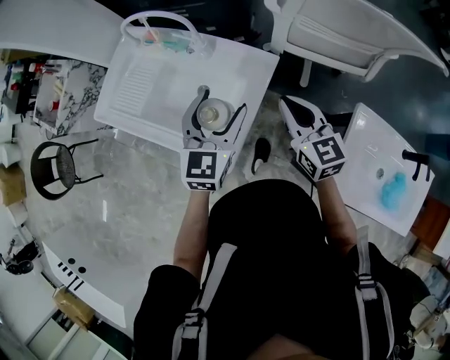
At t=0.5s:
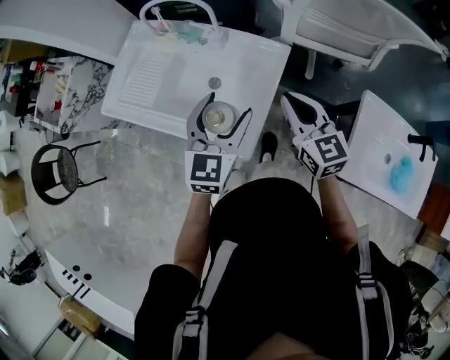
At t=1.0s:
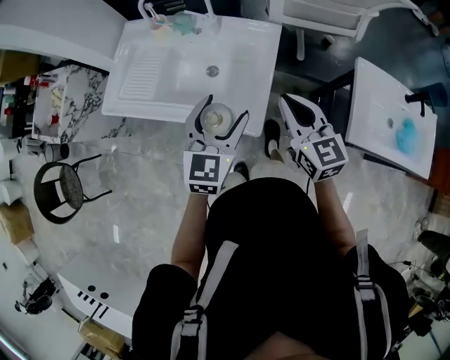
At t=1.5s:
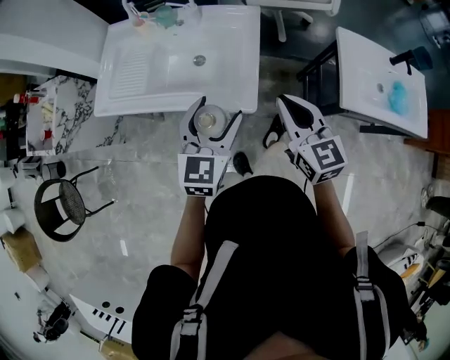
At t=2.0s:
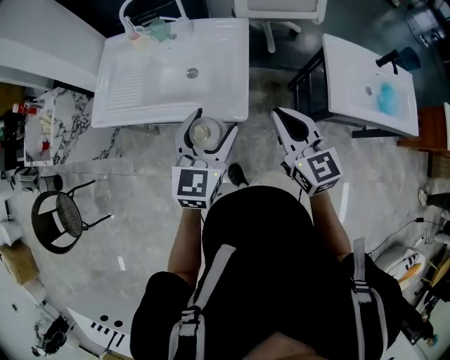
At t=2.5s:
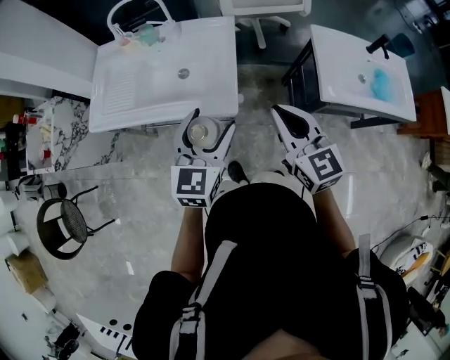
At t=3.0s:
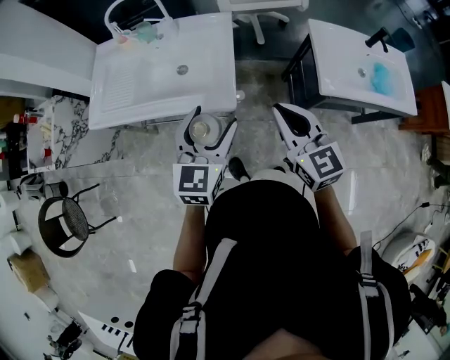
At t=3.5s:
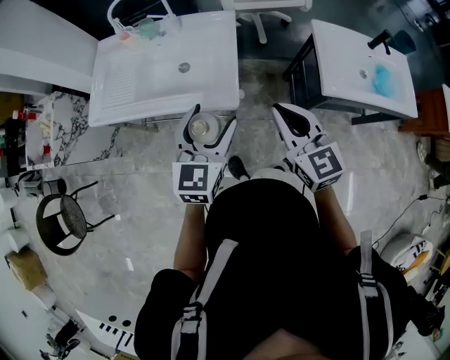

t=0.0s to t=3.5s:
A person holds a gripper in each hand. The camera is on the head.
t=0.0s to t=2.0s: Both grippers move backward, about 25 cm. The left gripper rotates about 20 degrees. Meanwhile the right gripper turns by about 20 degrees.
t=2.0s to t=3.5s: The grippers make only small movements.

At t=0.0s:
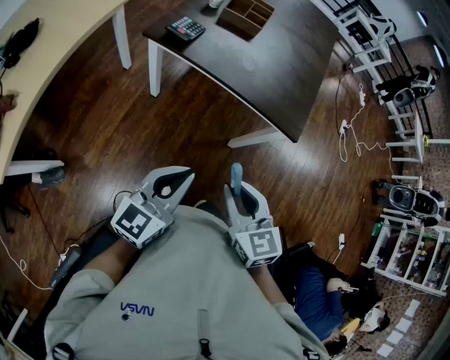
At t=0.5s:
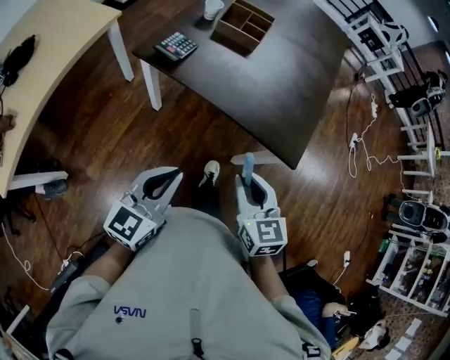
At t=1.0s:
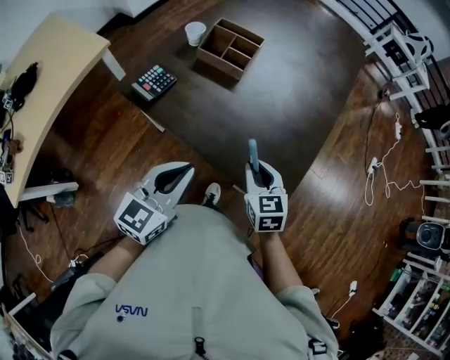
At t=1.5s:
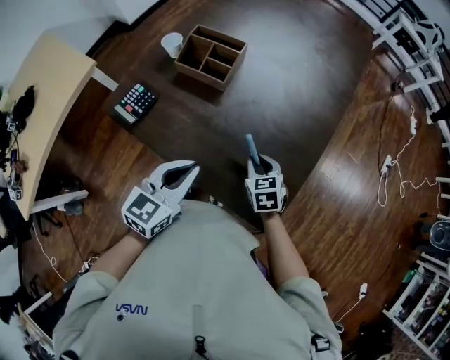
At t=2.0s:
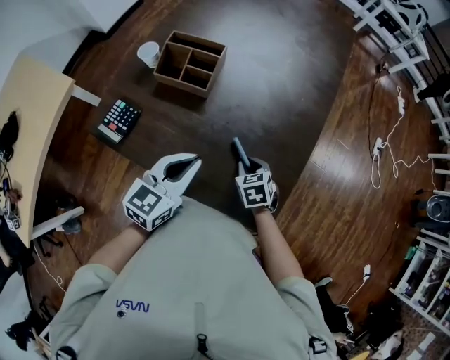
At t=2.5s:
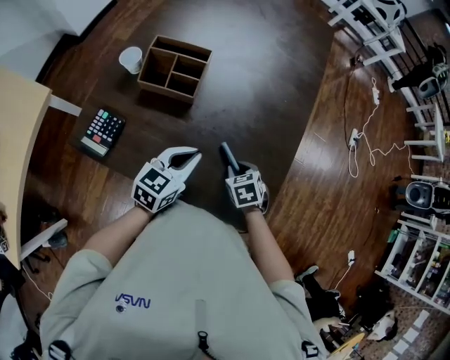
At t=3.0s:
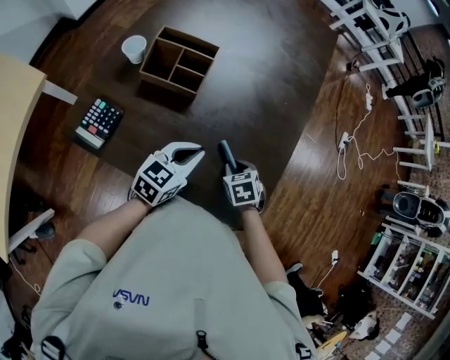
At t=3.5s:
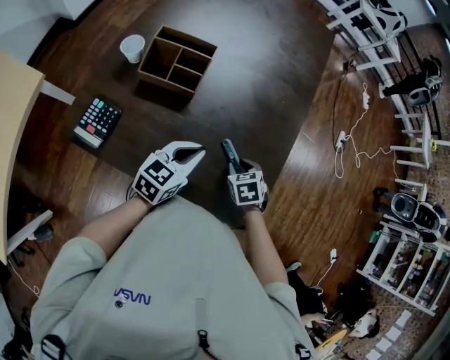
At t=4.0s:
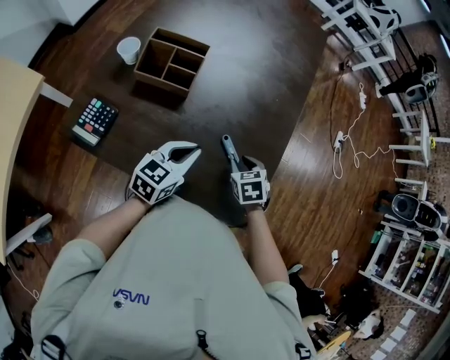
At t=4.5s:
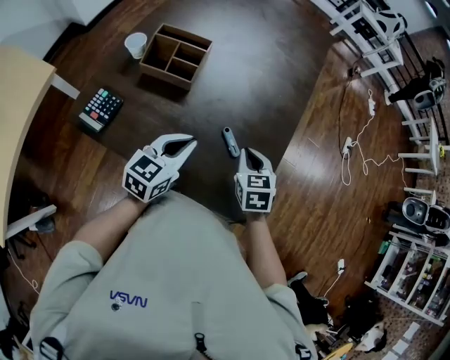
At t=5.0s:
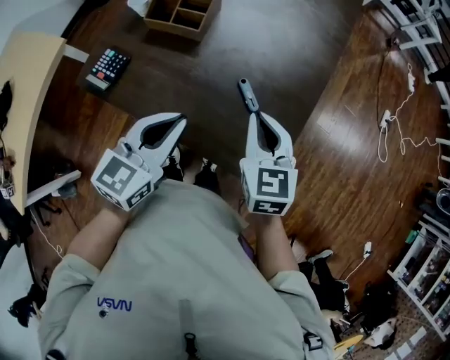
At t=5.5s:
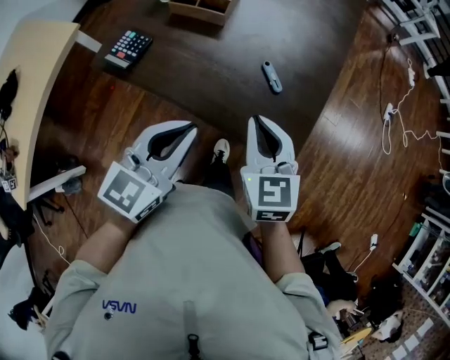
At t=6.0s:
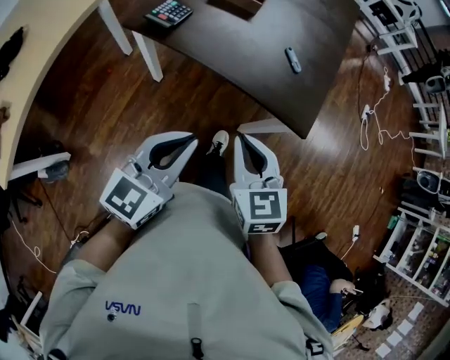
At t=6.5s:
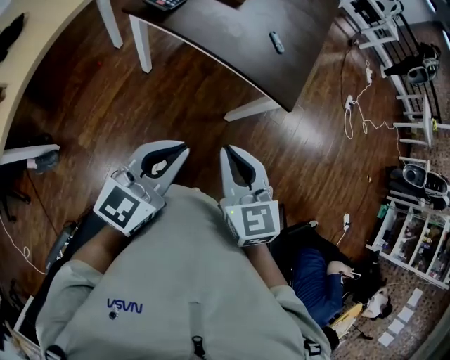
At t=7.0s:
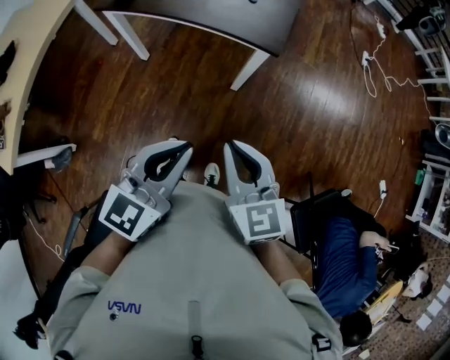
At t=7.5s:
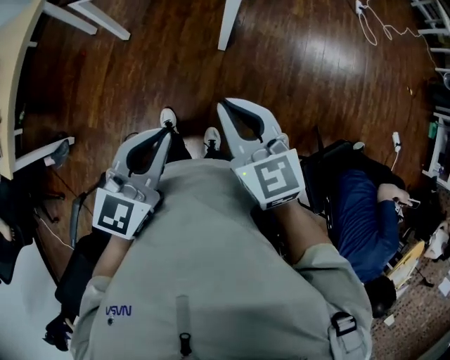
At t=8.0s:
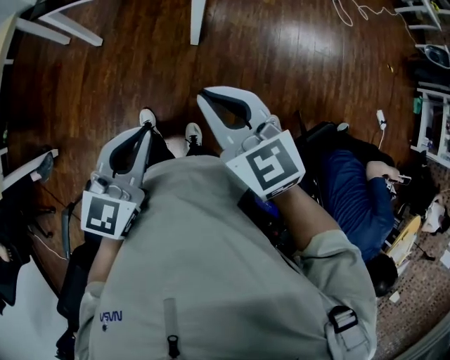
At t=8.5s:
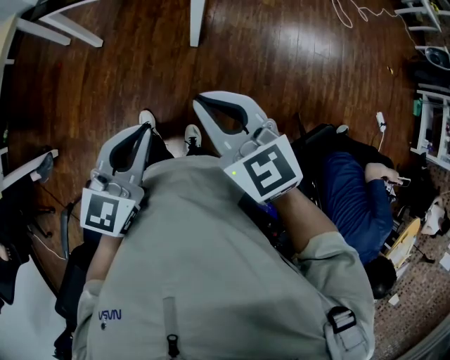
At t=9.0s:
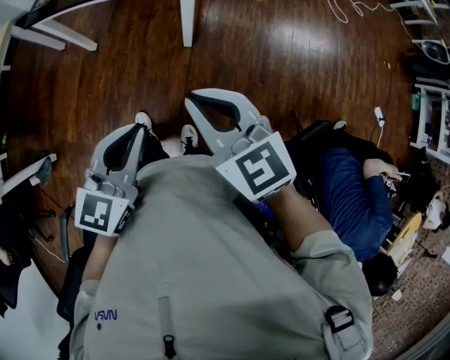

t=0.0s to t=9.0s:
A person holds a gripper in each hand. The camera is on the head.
t=0.0s to t=2.0s: The left gripper goes roughly 30 cm forward. Meanwhile the right gripper moves forward and downward, about 40 cm, and tips its fingers downward by some 30 degrees.
t=2.0s to t=4.5s: The right gripper is displaced upward by approximately 10 cm.
t=4.5s to t=7.0s: Both grippers move backward, some 40 cm. The right gripper turns by approximately 30 degrees.
t=7.0s to t=9.0s: The right gripper shifts by roughly 5 cm; the left gripper moves roughly 5 cm.

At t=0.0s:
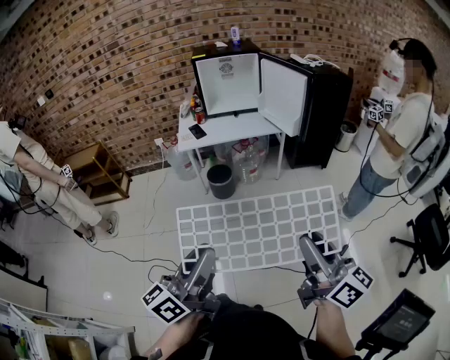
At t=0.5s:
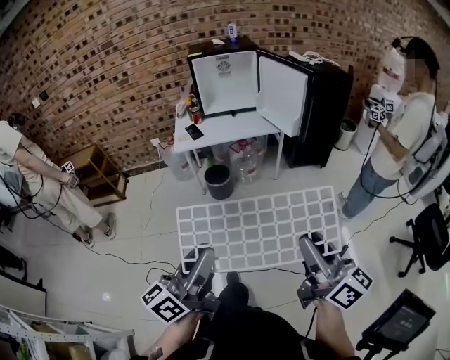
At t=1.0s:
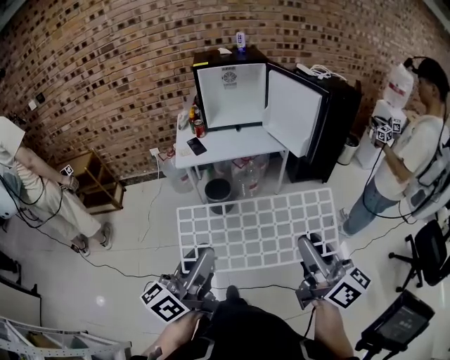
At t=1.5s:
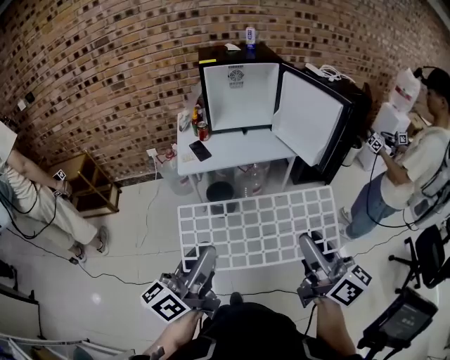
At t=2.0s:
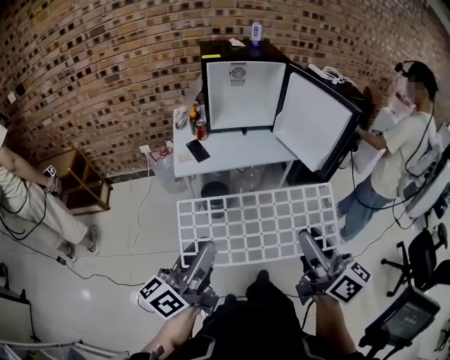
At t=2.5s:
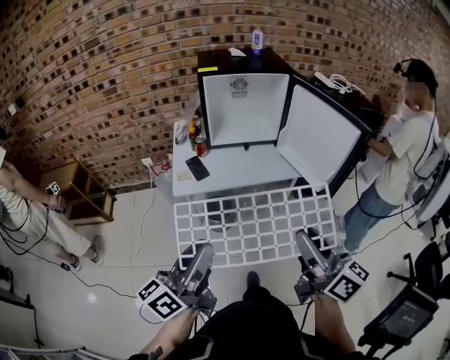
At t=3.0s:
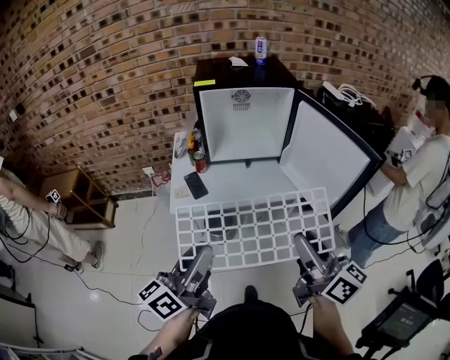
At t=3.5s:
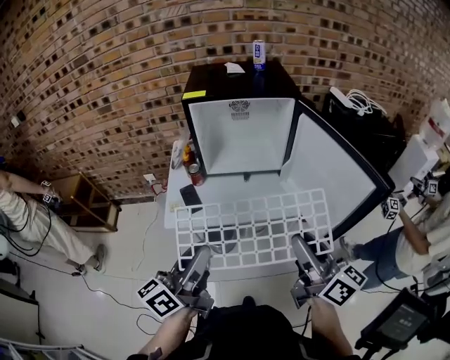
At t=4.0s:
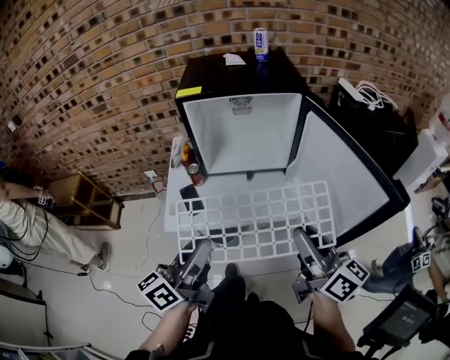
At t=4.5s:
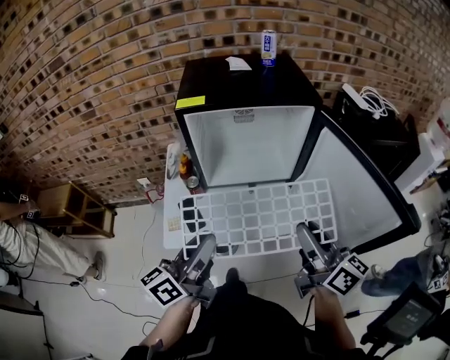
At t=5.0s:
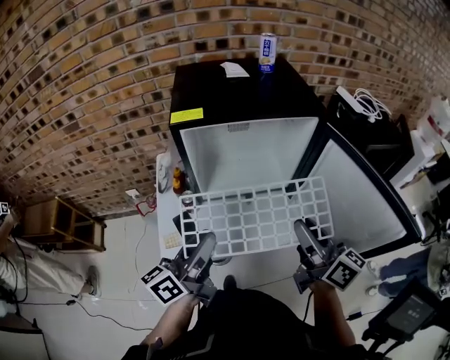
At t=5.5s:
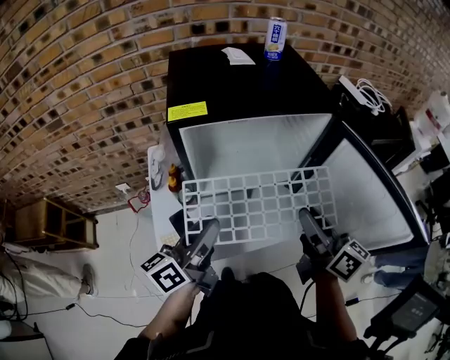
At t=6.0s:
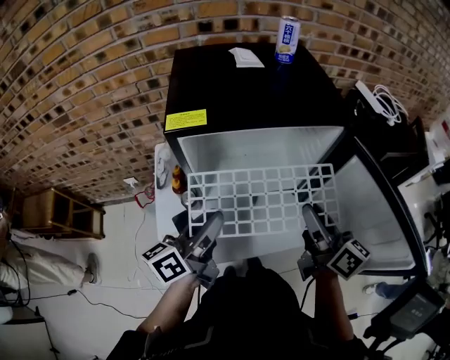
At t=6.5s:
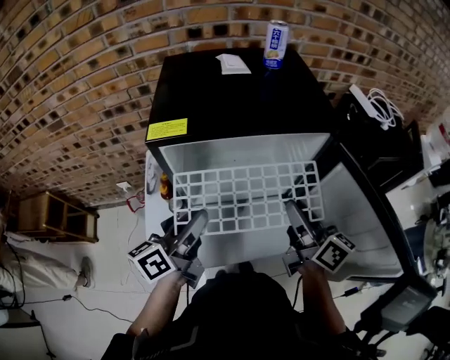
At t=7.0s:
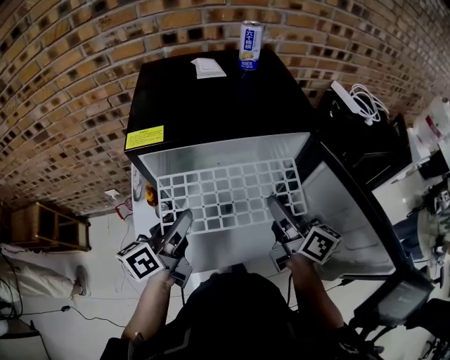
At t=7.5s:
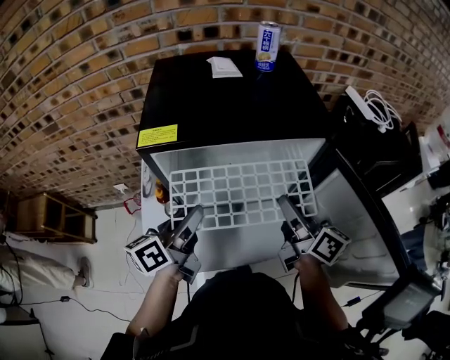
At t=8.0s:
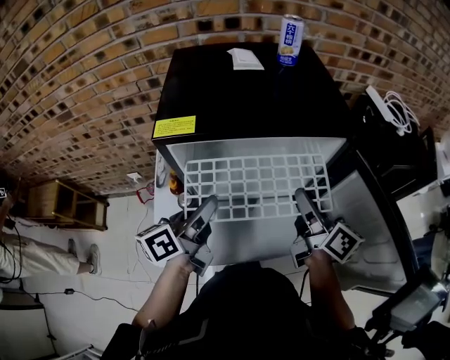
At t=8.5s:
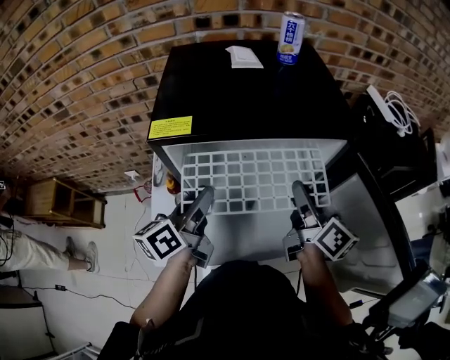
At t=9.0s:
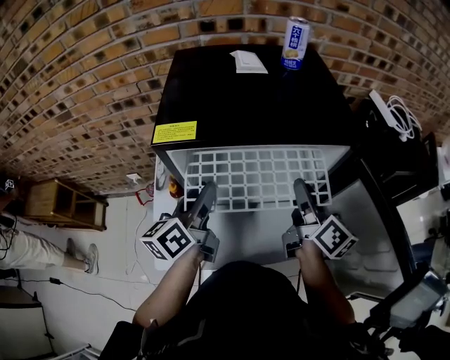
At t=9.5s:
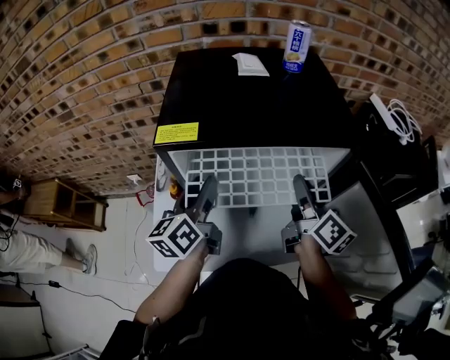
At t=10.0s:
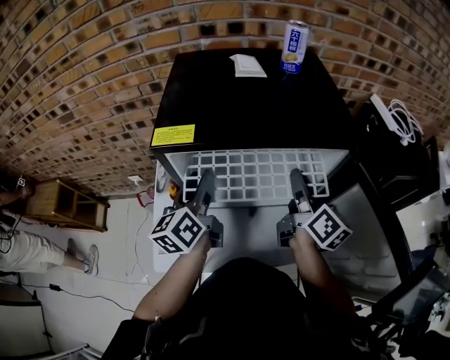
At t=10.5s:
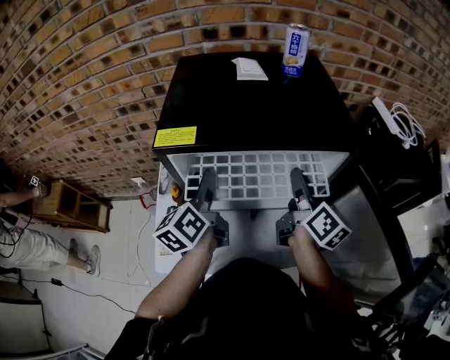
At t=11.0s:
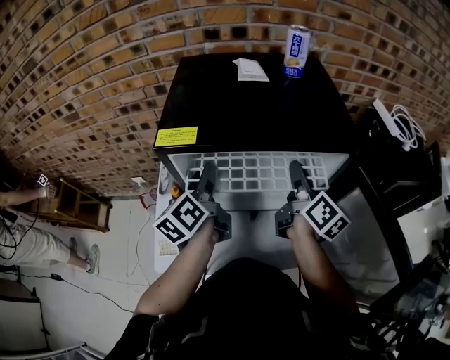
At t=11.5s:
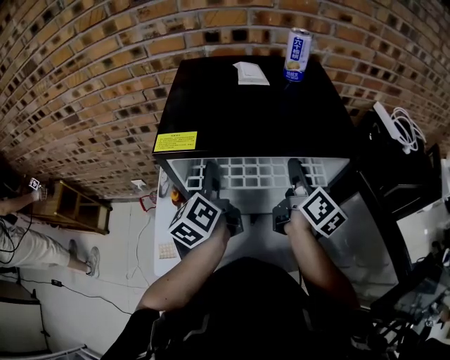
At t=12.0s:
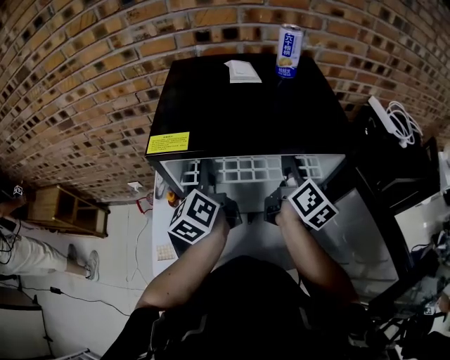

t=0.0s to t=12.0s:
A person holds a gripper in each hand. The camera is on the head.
t=0.0s to t=2.0s: The two grippers go roughly 30 cm forward and to the left.
t=2.0s to t=4.0s: The grippers both shift forward by about 35 cm.
t=4.0s to t=6.0s: Both grippers travel together forward, about 25 cm.
t=6.0s to t=8.0s: Both grippers travel together forward, about 5 cm.
t=8.0s to t=10.0s: The two grippers go approximately 10 cm forward. The left gripper swivels approximately 30 degrees, and opens up.
t=10.0s to t=12.0s: The right gripper is displaced forward by some 5 cm.

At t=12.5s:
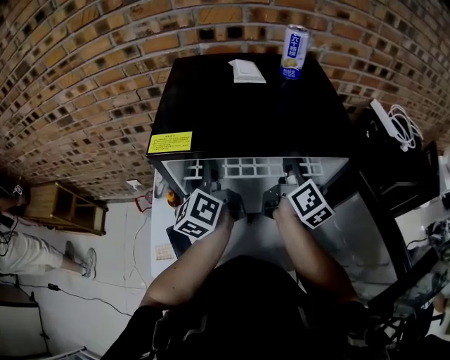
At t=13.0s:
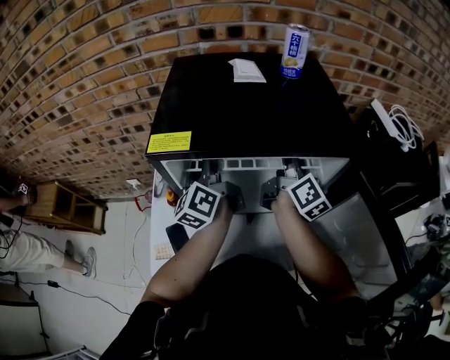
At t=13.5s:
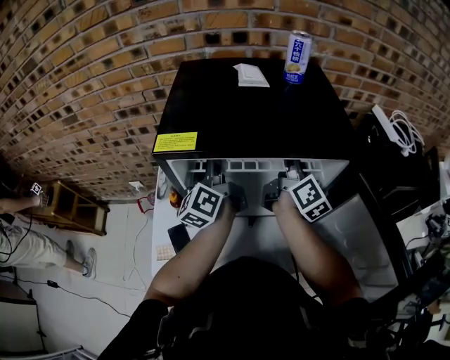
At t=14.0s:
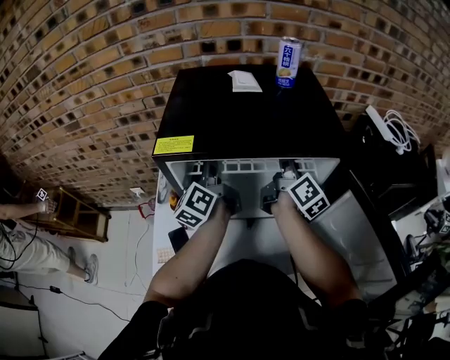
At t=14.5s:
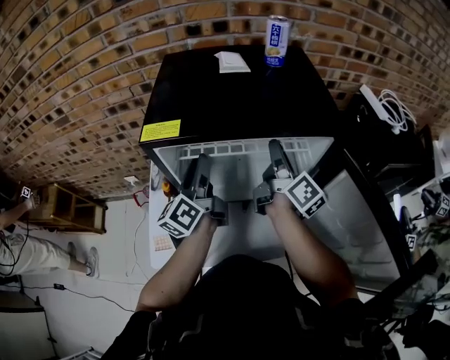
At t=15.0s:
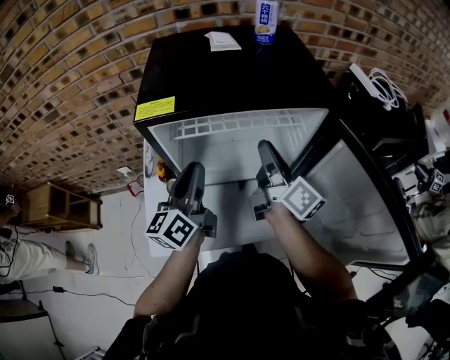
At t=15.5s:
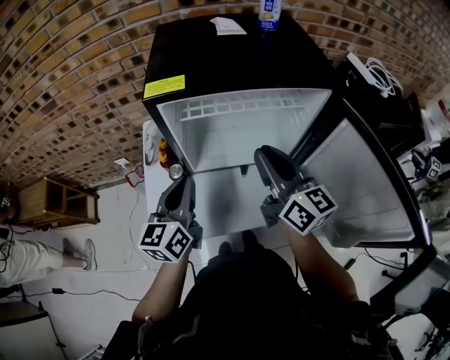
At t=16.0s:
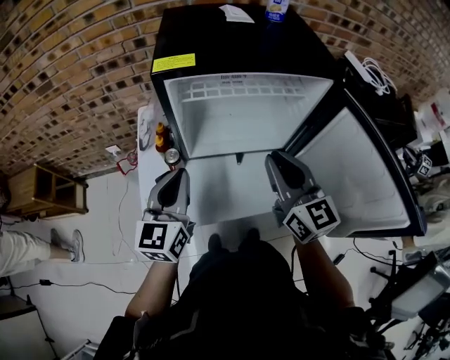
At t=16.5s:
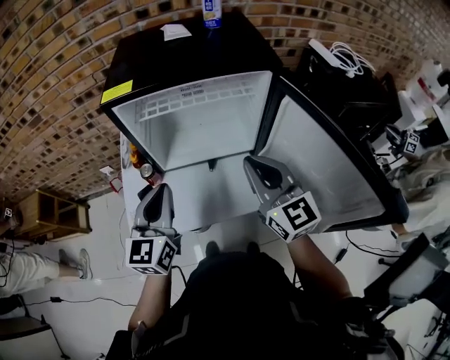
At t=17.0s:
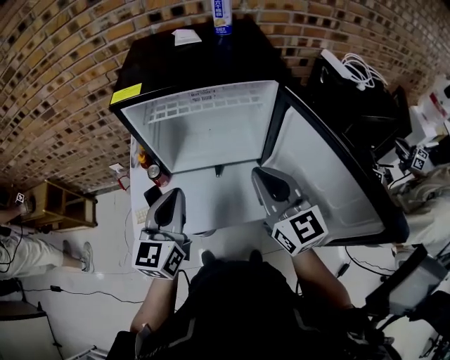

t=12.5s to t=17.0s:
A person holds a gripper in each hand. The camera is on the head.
t=12.5s to t=14.5s: The grippers stay close to where they were, moving slightly.
t=14.5s to t=17.0s: Both grippers move backward, some 25 cm. The left gripper changes its angle by roughly 40 degrees, and closes. Meanwhile the right gripper rotates around the line of its fingers by about 60 degrees, counterclockwise from behind, and closes up.
